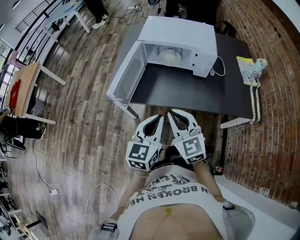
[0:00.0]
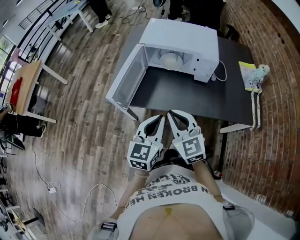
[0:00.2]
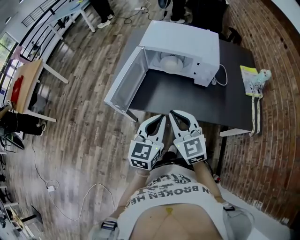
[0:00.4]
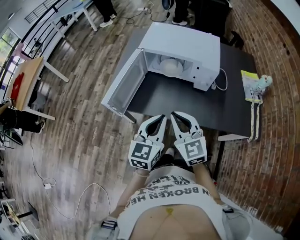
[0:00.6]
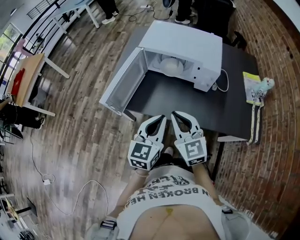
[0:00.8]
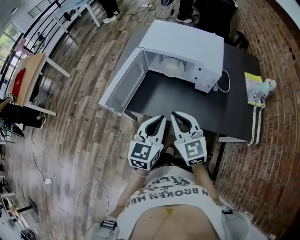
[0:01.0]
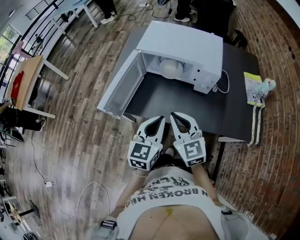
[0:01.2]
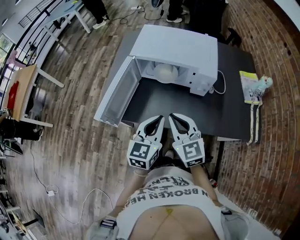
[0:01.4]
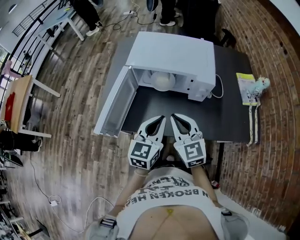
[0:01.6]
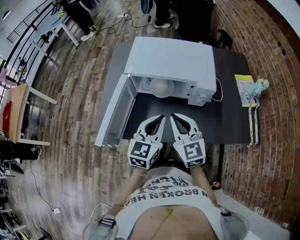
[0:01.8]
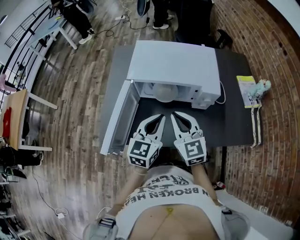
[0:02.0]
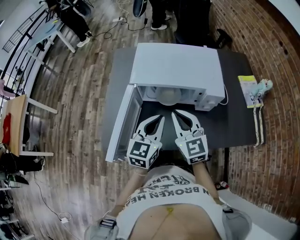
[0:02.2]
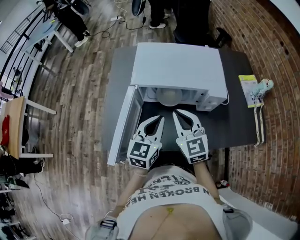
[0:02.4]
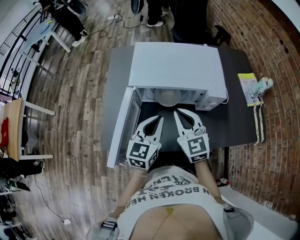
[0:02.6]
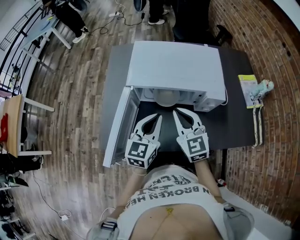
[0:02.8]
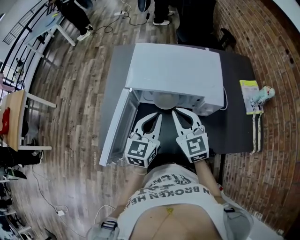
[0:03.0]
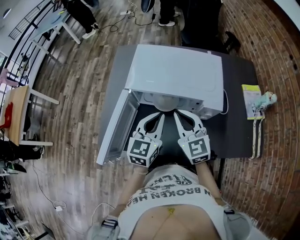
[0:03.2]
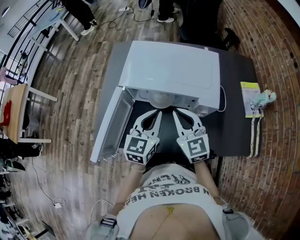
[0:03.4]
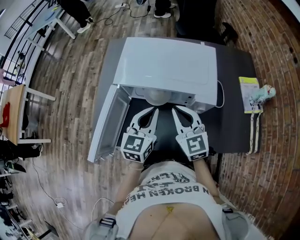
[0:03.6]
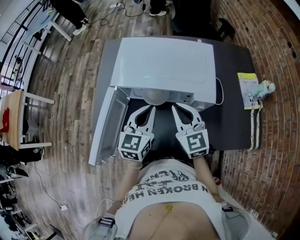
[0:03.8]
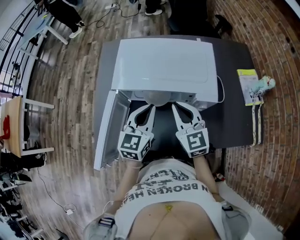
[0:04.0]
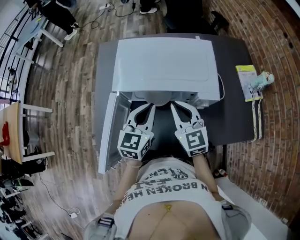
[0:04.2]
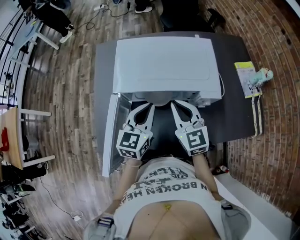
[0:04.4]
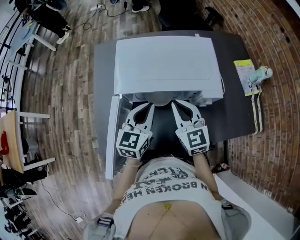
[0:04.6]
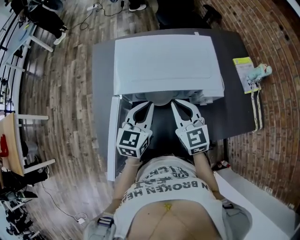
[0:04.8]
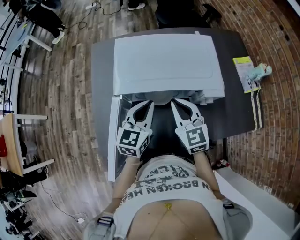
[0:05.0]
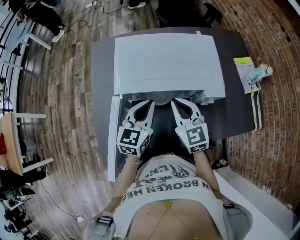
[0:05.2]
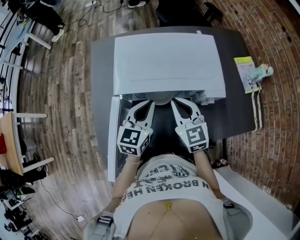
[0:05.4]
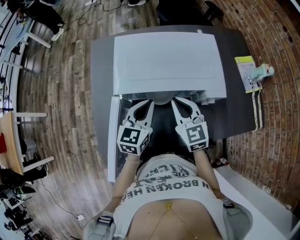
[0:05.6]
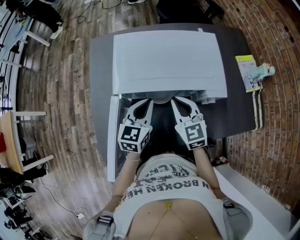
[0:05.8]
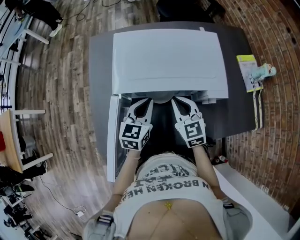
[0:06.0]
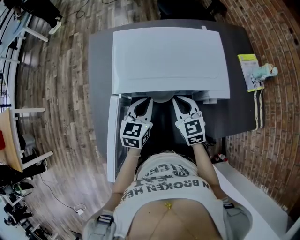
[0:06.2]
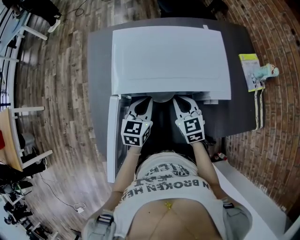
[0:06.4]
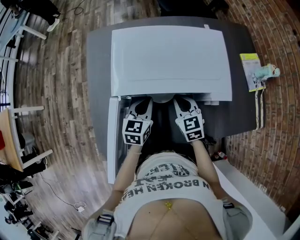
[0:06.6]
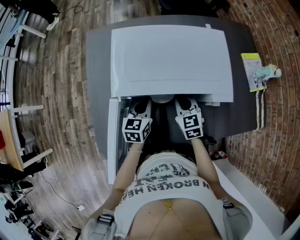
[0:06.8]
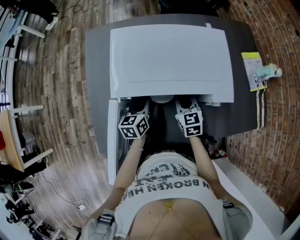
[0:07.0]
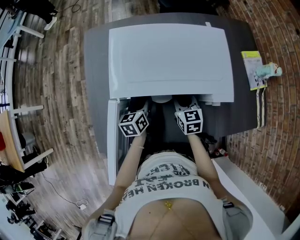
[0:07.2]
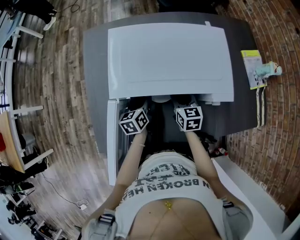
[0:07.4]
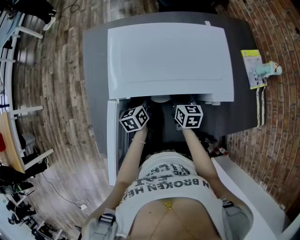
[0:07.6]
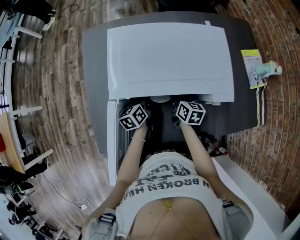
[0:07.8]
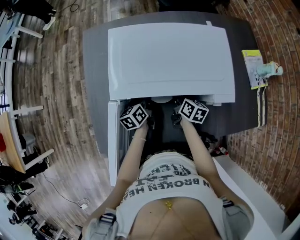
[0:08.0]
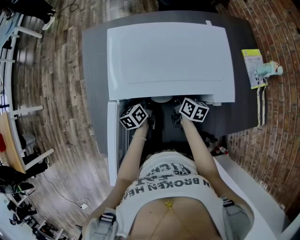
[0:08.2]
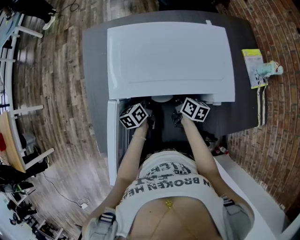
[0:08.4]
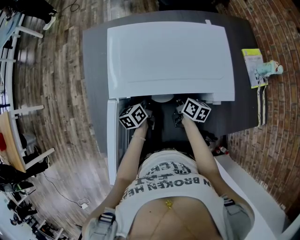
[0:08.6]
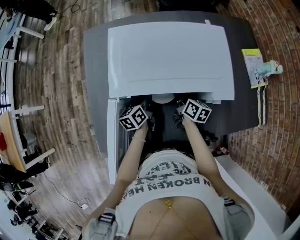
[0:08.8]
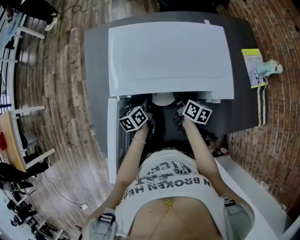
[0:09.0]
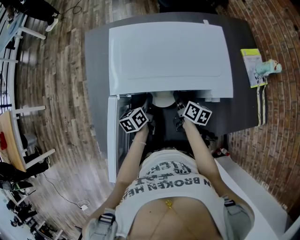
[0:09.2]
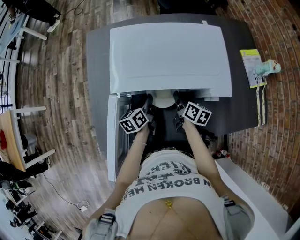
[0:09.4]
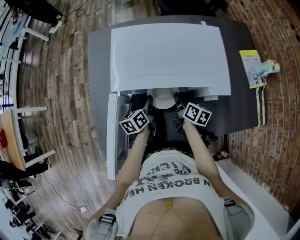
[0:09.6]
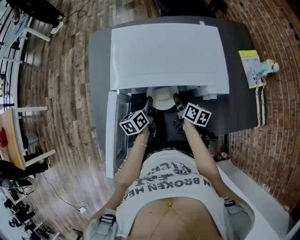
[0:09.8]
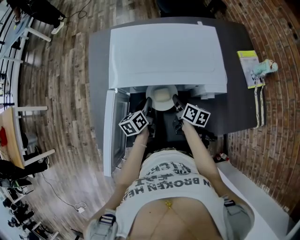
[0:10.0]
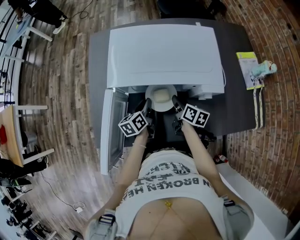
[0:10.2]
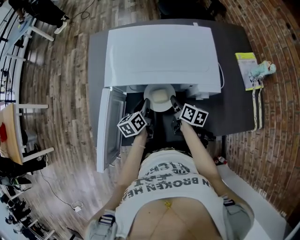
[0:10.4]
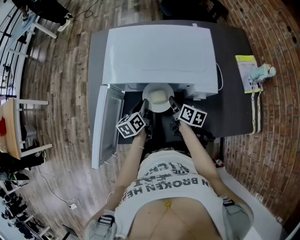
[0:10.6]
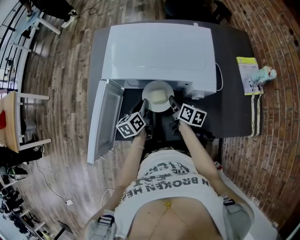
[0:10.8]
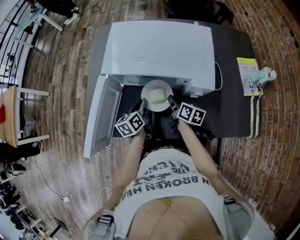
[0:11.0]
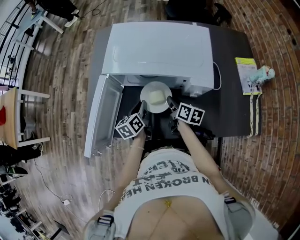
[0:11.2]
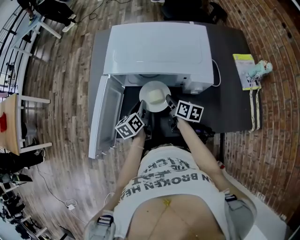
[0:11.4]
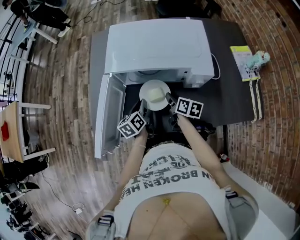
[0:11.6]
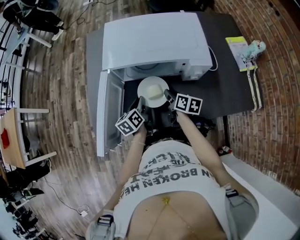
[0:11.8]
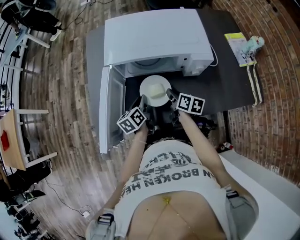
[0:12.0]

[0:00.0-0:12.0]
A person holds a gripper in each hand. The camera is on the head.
0:00.0 to 0:01.6: The left gripper shifts about 20 cm forward; the right gripper is displaced forward and to the right by roughly 20 cm.
0:01.6 to 0:03.0: The two grippers go about 15 cm forward.
0:03.0 to 0:04.4: The left gripper goes about 5 cm forward. Meanwhile the right gripper moves roughly 5 cm.
0:04.4 to 0:06.0: Both grippers travel together downward, roughly 5 cm.
0:06.0 to 0:07.6: The two grippers go approximately 15 cm downward. The left gripper changes its angle by about 30 degrees, and opens its fingers. Meanwhile the right gripper rotates roughly 30 degrees, and opens up.
0:07.6 to 0:09.0: The right gripper changes its angle by some 30 degrees.
0:09.0 to 0:10.4: The right gripper changes place by about 5 cm; the left gripper heads backward, covering roughly 5 cm.
0:10.4 to 0:12.0: The grippers both shift backward by some 10 cm.

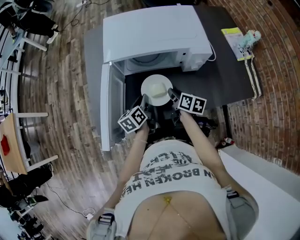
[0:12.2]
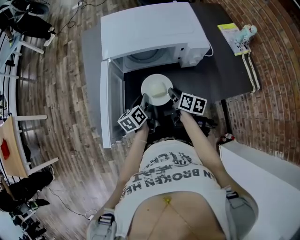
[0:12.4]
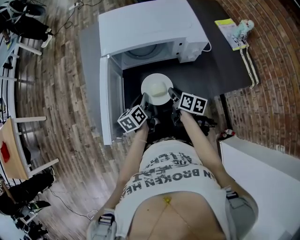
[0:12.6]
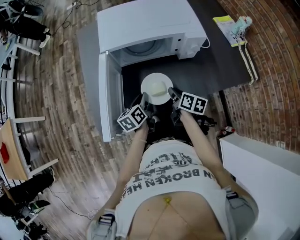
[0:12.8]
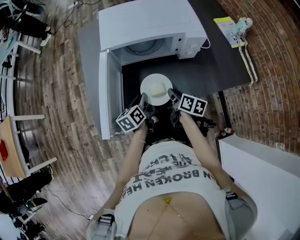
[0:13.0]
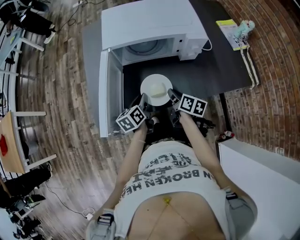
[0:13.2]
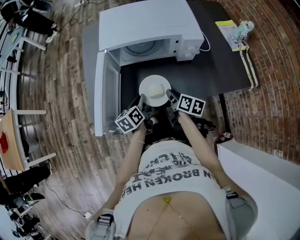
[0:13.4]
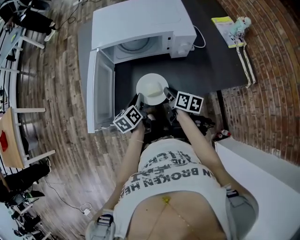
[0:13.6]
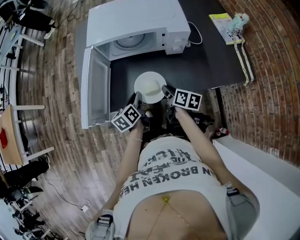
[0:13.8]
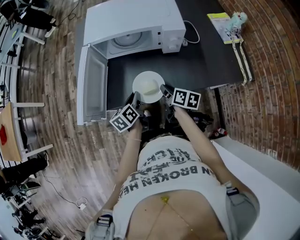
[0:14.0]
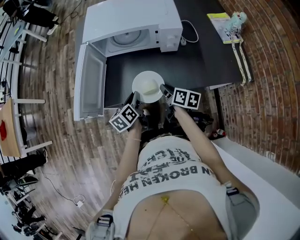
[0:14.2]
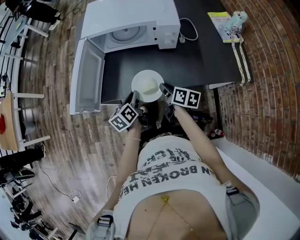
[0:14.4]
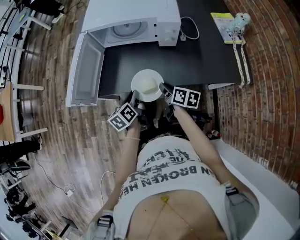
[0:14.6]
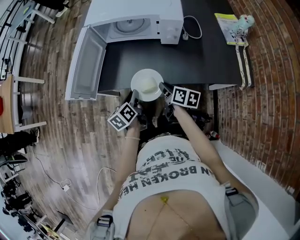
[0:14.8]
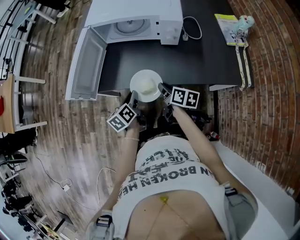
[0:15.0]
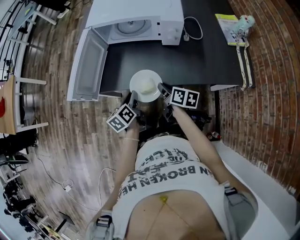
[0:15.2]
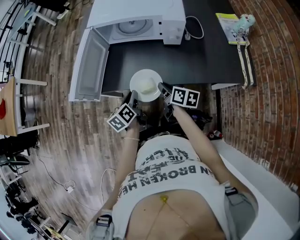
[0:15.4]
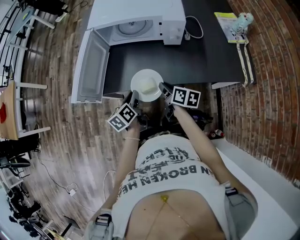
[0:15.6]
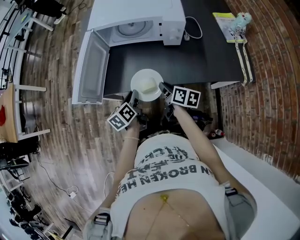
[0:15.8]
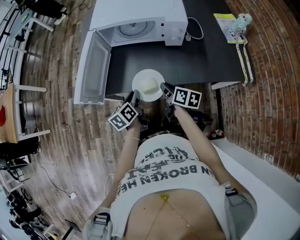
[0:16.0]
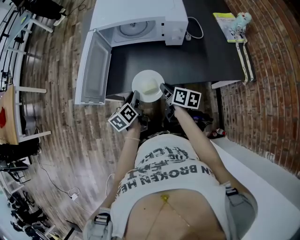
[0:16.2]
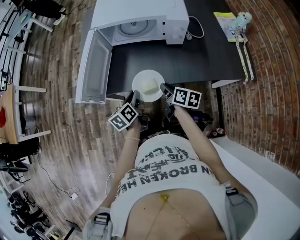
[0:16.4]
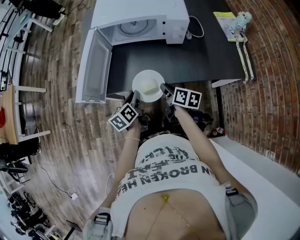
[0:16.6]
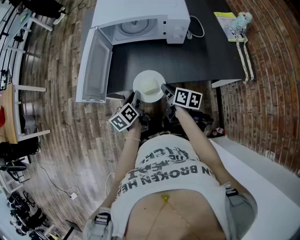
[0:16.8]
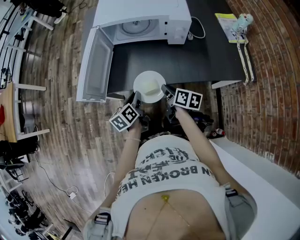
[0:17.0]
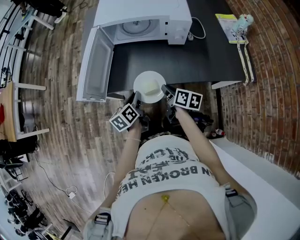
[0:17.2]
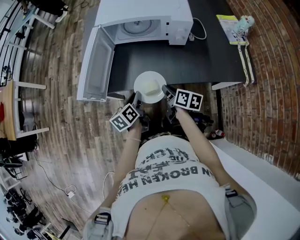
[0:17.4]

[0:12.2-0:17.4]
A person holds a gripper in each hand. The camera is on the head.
0:12.2 to 0:14.0: The grippers both shift backward and to the right by about 10 cm.
0:14.0 to 0:15.6: Both grippers travel together backward, about 5 cm.
0:15.6 to 0:17.4: The grippers move only a little.

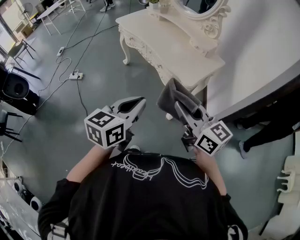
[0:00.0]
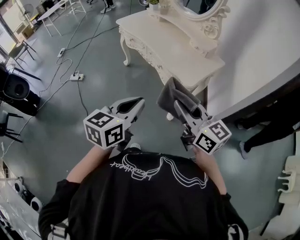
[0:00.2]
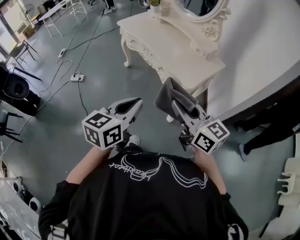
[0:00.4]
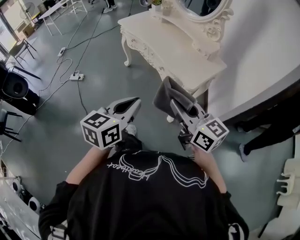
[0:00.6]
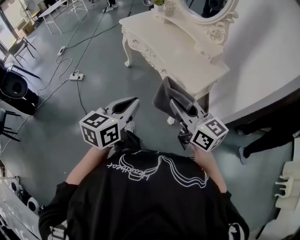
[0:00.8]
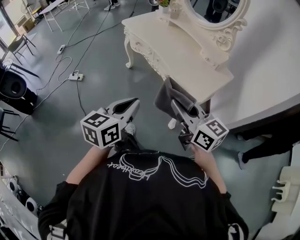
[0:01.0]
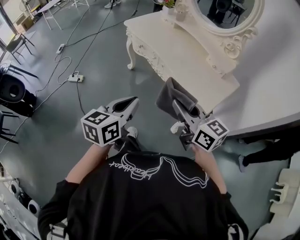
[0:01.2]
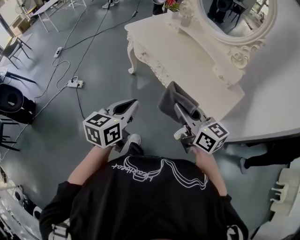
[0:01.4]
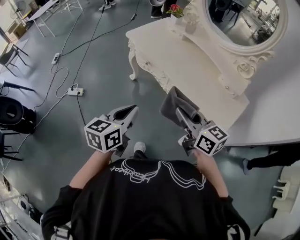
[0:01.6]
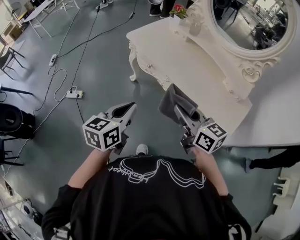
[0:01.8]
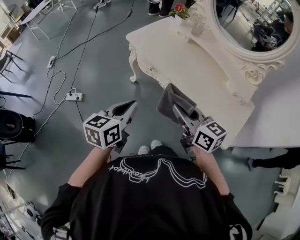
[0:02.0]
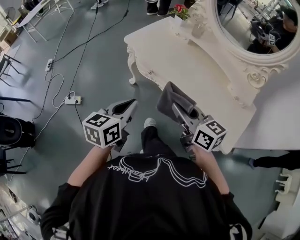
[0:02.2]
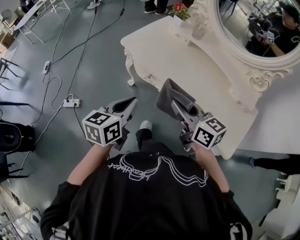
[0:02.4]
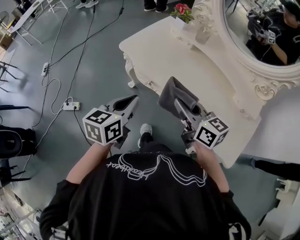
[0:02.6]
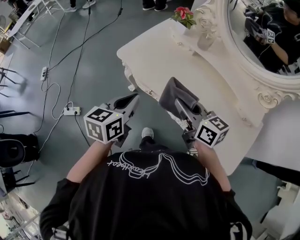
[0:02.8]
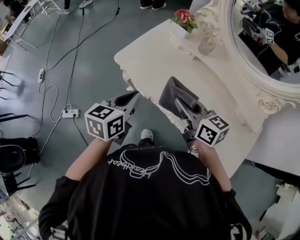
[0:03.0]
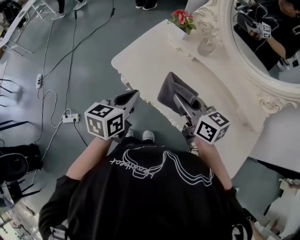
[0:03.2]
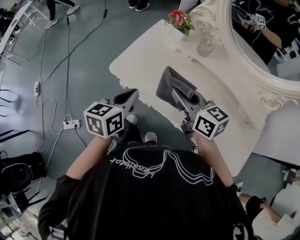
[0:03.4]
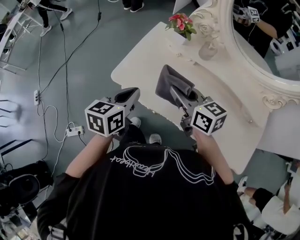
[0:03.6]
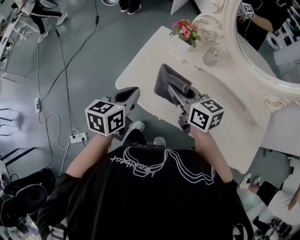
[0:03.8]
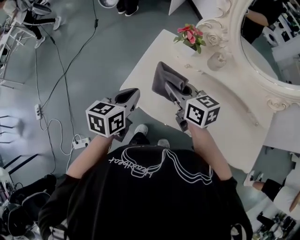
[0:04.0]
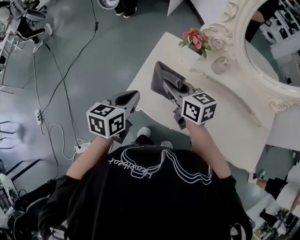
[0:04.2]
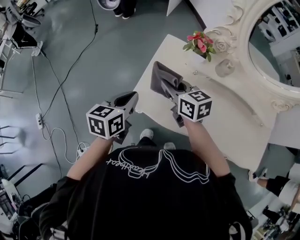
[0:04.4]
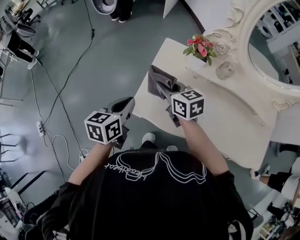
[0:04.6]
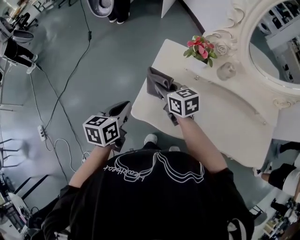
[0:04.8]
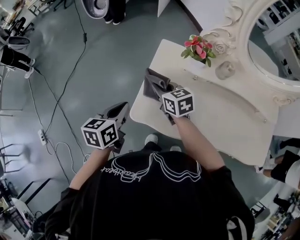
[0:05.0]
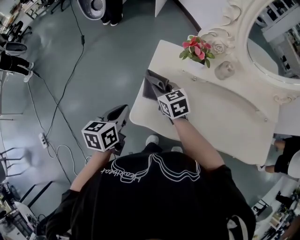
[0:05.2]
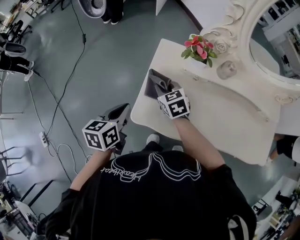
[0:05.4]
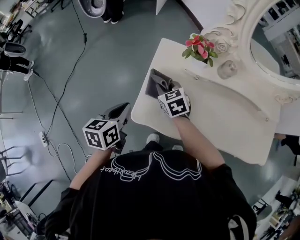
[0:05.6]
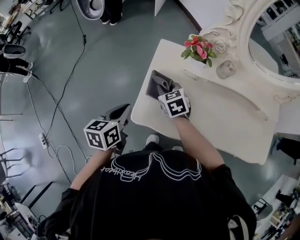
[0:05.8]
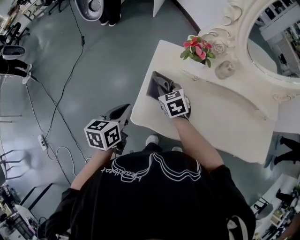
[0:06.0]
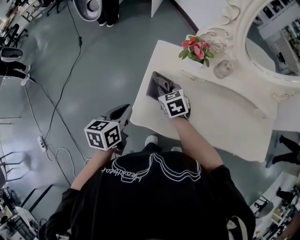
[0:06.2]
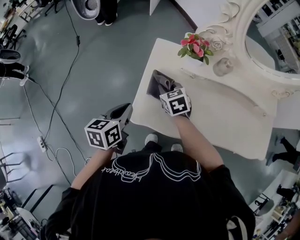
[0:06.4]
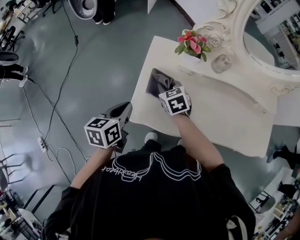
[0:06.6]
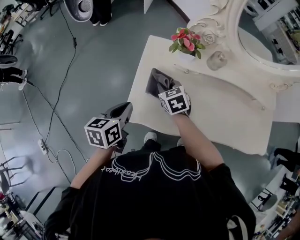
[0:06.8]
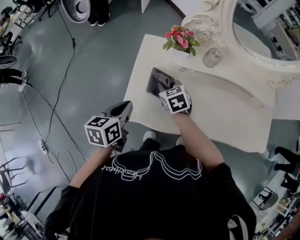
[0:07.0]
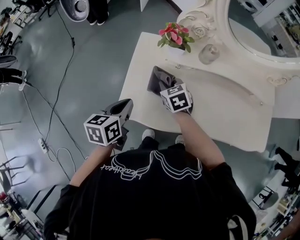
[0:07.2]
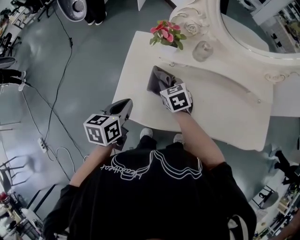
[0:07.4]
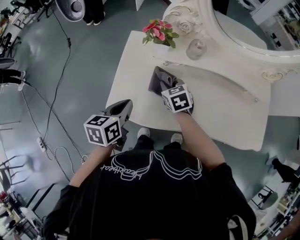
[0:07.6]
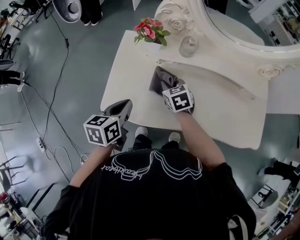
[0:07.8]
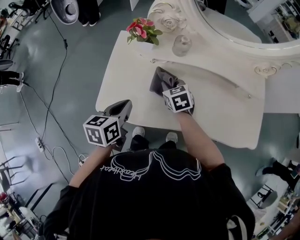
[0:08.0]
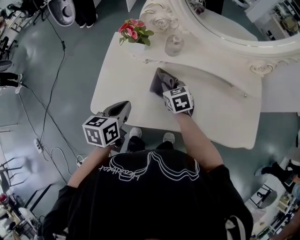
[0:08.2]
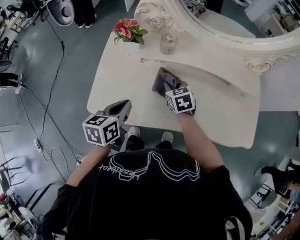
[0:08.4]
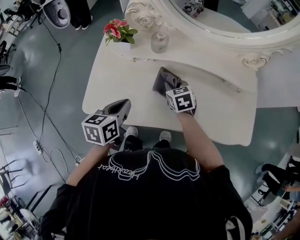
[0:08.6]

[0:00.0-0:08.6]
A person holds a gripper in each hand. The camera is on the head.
0:00.0 to 0:01.4: The grippers both shift forward and to the left by some 30 cm.
0:01.4 to 0:02.8: The two grippers go about 40 cm forward.
0:02.8 to 0:04.4: The two grippers go roughly 35 cm forward and to the left.
0:04.4 to 0:05.8: The right gripper goes approximately 15 cm downward and forward, and changes its angle by about 30 degrees, while the left gripper changes place by approximately 5 cm.
0:05.8 to 0:07.2: The two grippers go some 10 cm to the right.
0:07.2 to 0:08.6: The grippers both shift to the right by approximately 20 cm.
